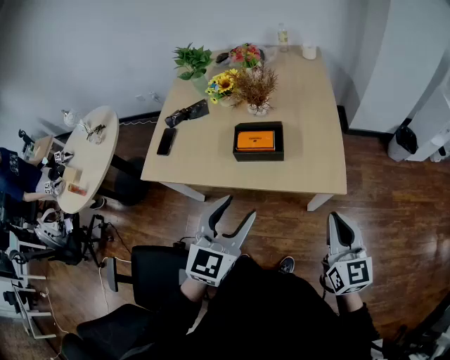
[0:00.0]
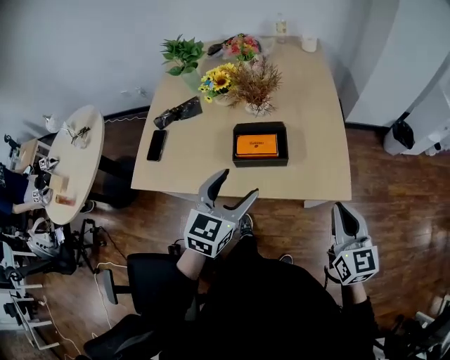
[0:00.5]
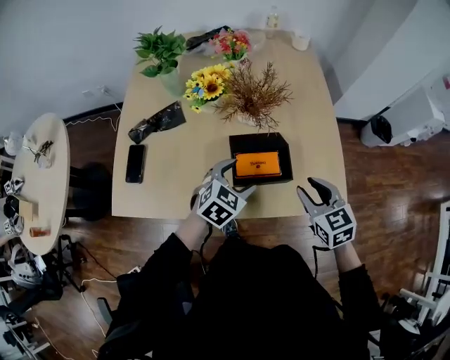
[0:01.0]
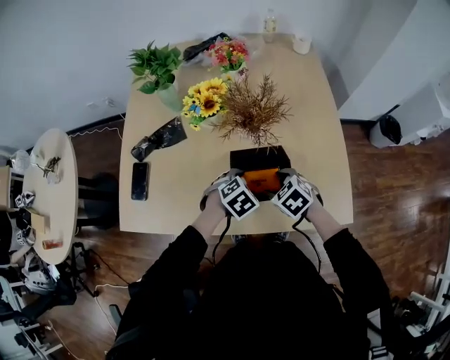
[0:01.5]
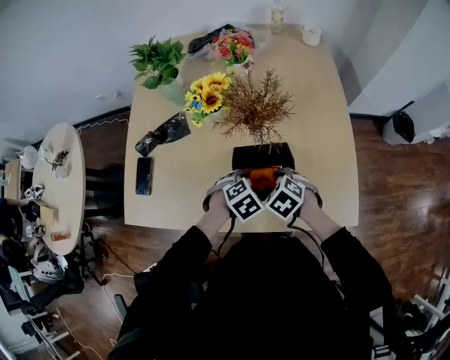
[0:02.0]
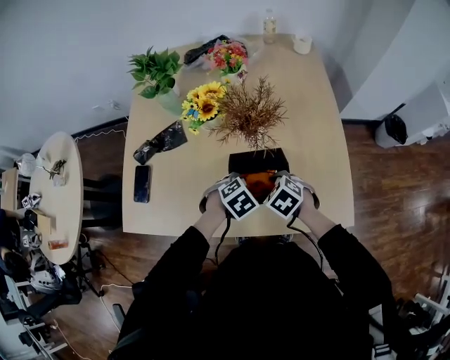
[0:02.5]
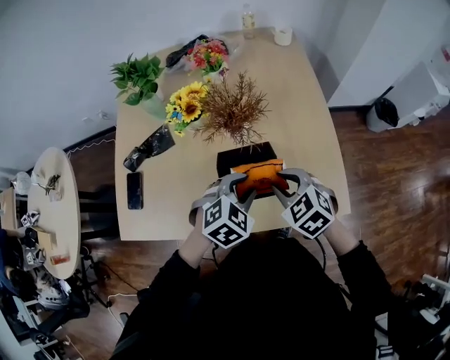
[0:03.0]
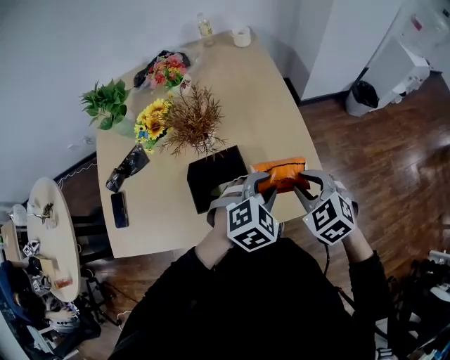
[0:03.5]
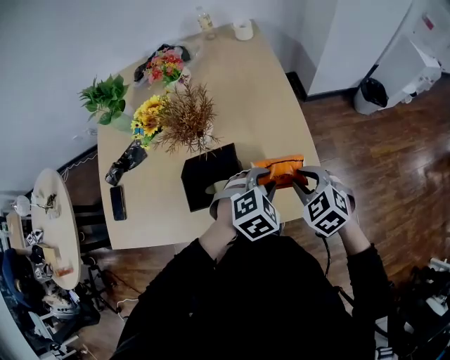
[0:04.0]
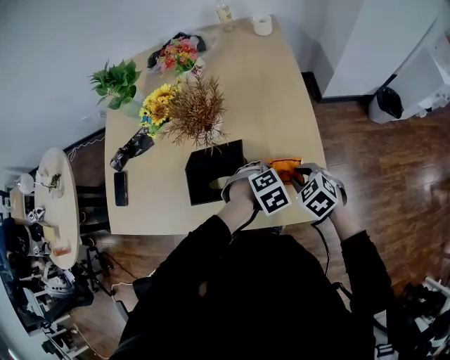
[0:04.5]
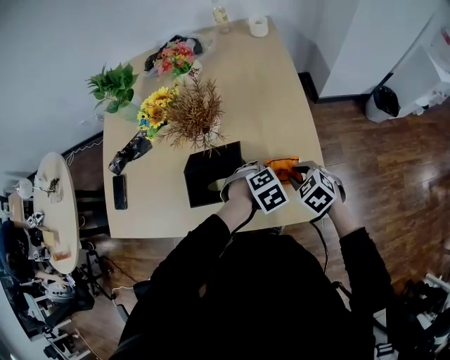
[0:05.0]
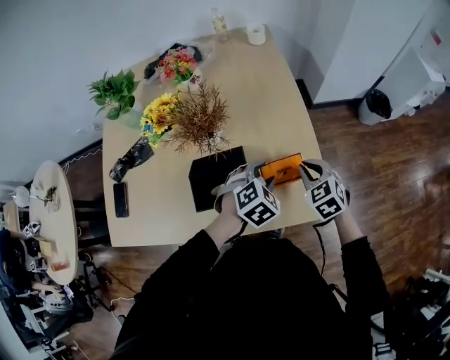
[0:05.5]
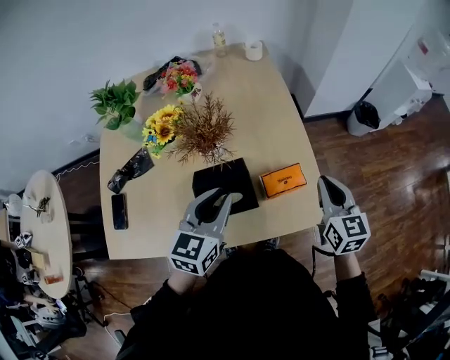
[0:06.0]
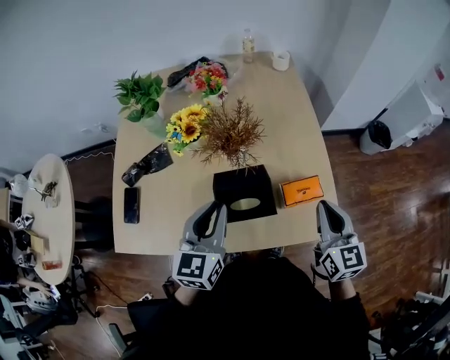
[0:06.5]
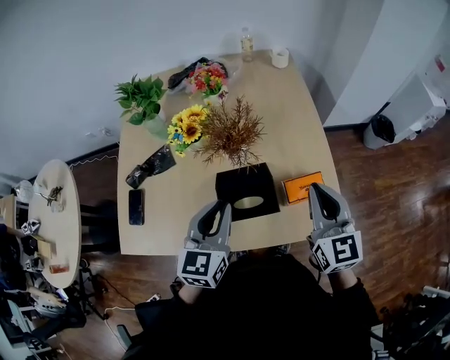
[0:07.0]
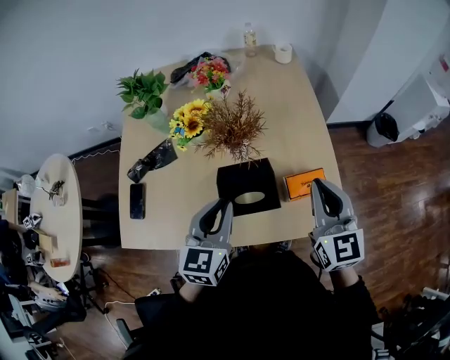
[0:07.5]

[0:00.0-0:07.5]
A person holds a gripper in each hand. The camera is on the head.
0:00.0 to 0:02.0: The right gripper goes approximately 40 cm forward, downward and to the left, angles its fingers downward, by roughly 60 degrees, and opens. Meanwhile the left gripper moves forward and downward, about 40 cm, tilts its fingers roughly 50 degrees downward, and opens, then closes once more.
0:02.0 to 0:04.0: Both grippers move to the right and upward, approximately 25 cm. The left gripper changes its angle by roughly 20 degrees, while the right gripper rotates approximately 20 degrees, and closes.
0:04.0 to 0:05.5: The left gripper travels downward and back again, approximately 10 cm each way, while the right gripper is displaced forward by some 5 cm.
0:05.5 to 0:07.5: The left gripper travels to the left and upward by some 25 cm, tilts its fingers some 30 degrees upward, and closes its fingers. The right gripper moves upward and to the left, approximately 25 cm, and tilts its fingers some 40 degrees upward.

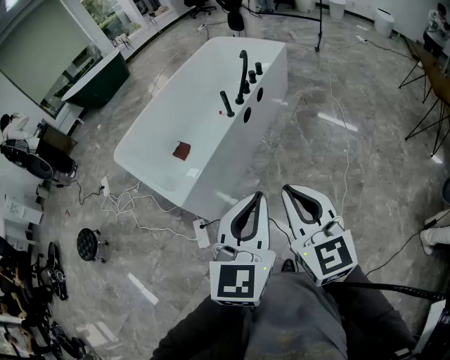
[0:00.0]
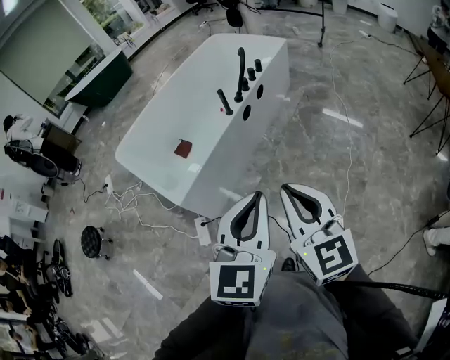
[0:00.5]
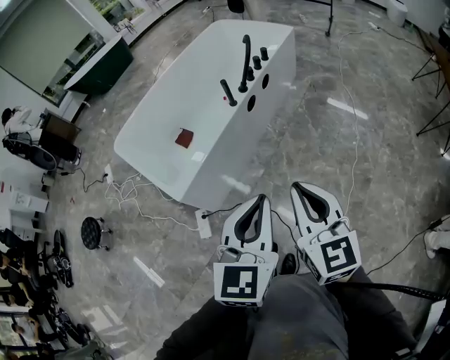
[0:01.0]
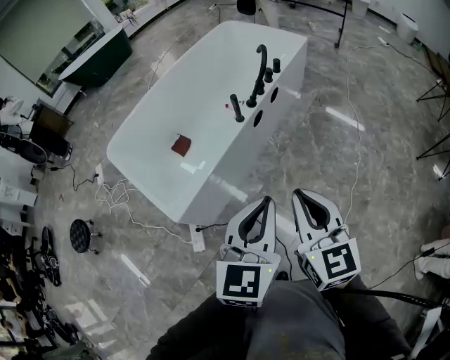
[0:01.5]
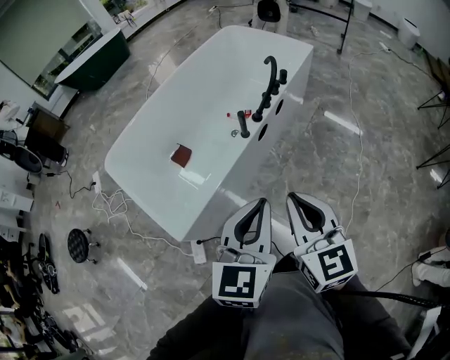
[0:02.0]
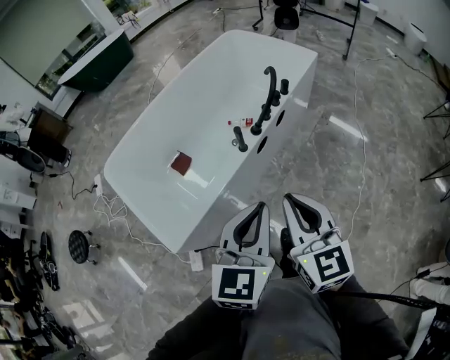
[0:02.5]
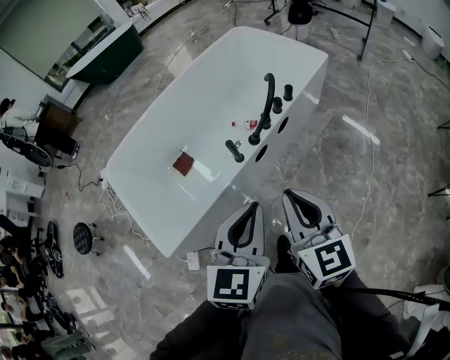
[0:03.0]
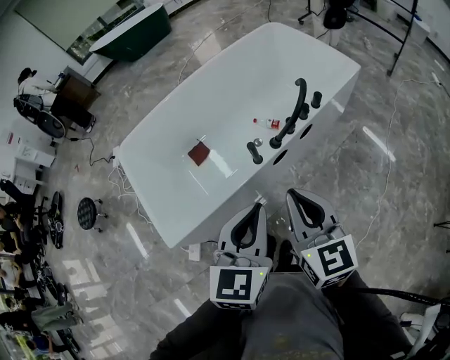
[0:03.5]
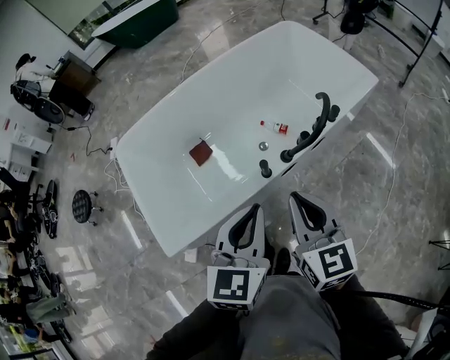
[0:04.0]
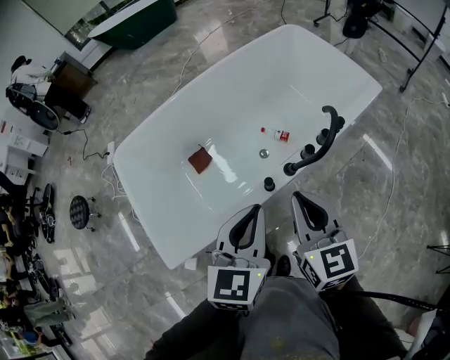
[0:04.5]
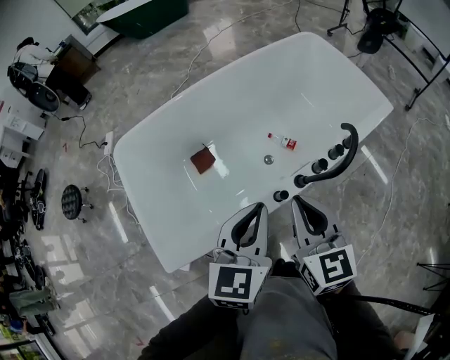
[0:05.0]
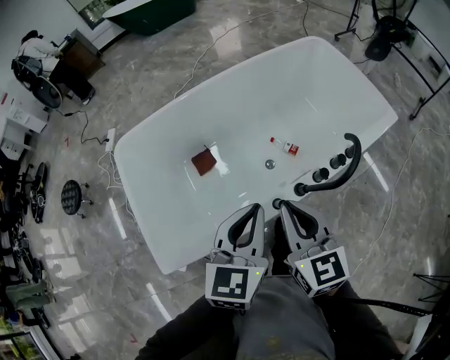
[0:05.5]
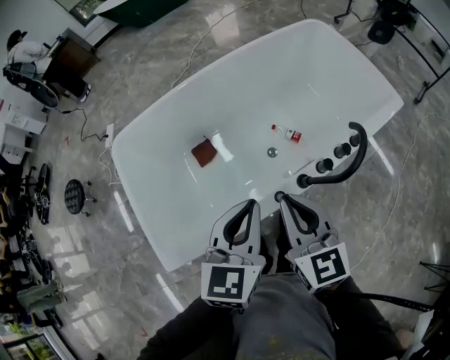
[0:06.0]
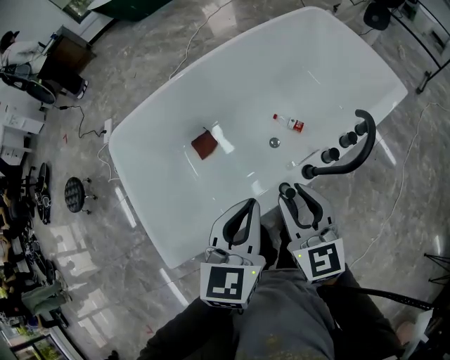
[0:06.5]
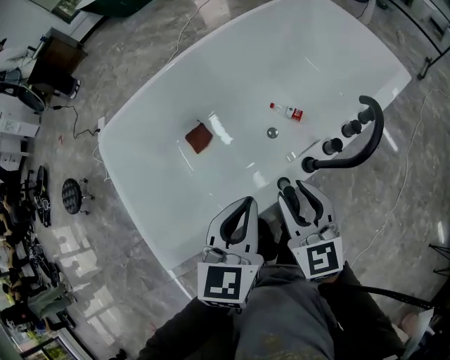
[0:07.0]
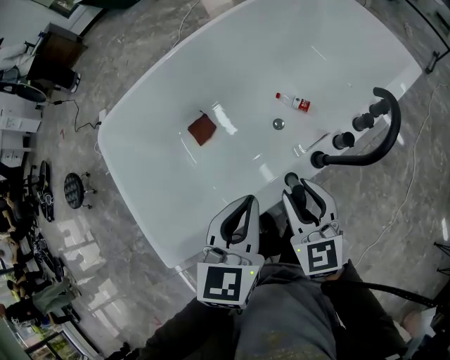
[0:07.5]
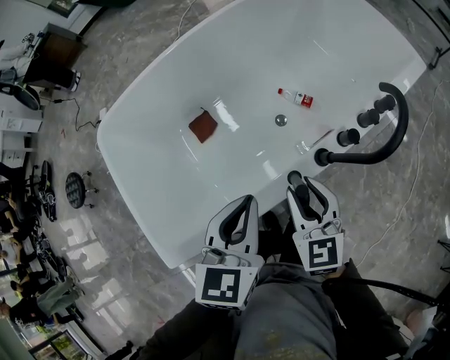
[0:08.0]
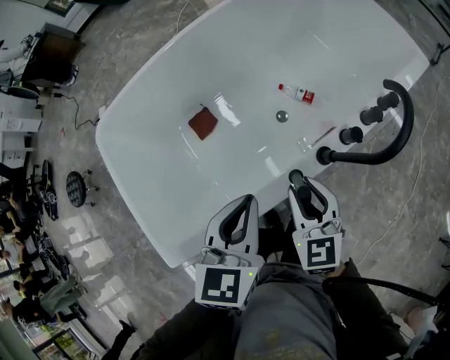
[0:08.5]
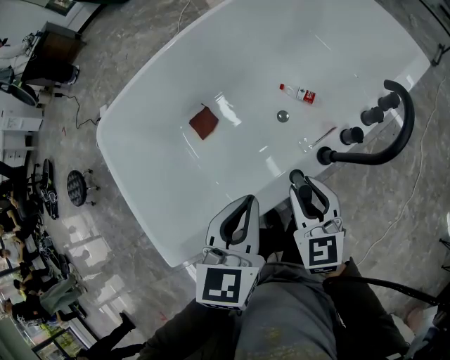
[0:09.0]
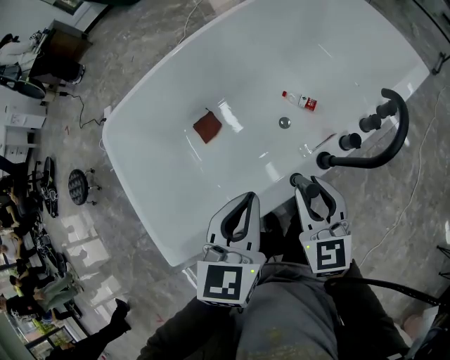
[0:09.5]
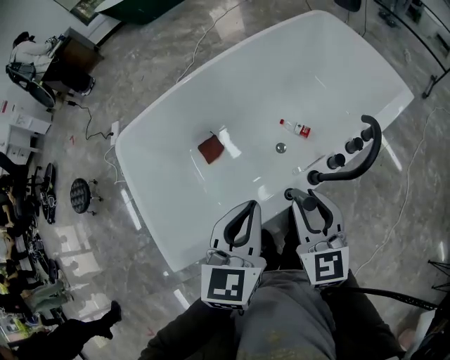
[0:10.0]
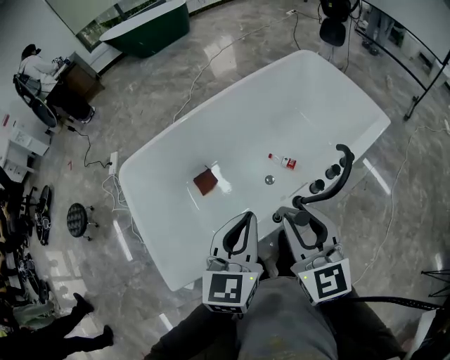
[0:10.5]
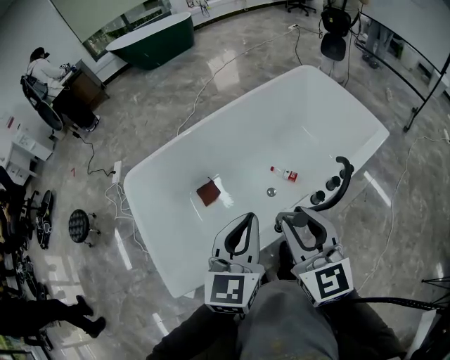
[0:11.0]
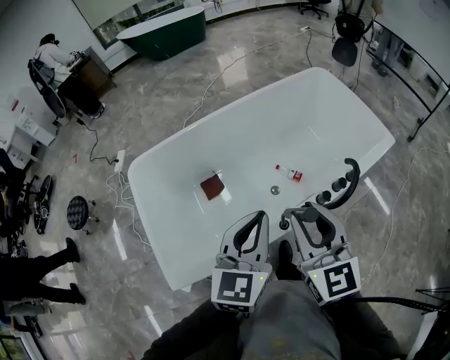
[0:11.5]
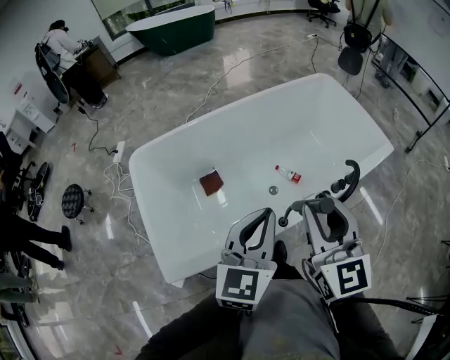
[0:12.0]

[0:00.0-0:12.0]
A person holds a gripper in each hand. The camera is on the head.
0:00.0 to 0:02.0: The two grippers go approximately 25 cm forward.
0:02.0 to 0:04.0: Both grippers move forward, roughly 25 cm. The left gripper changes its angle by roughly 20 degrees.
0:04.0 to 0:06.0: The right gripper travels forward and to the left by some 15 cm, while the left gripper travels forward by roughly 15 cm.
0:06.0 to 0:08.0: Both grippers move downward, some 15 cm. The right gripper opens up.
0:08.0 to 0:10.0: Both grippers travel together upward, approximately 10 cm.
0:10.0 to 0:12.0: The left gripper is displaced upward by some 10 cm. Meanwhile the right gripper is displaced upward by roughly 20 cm.

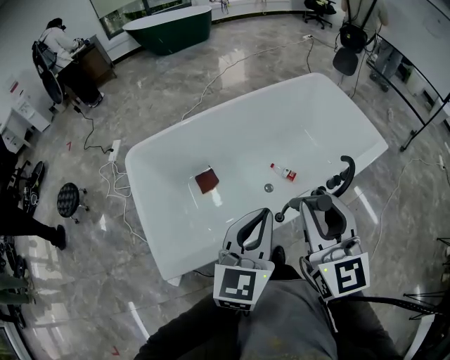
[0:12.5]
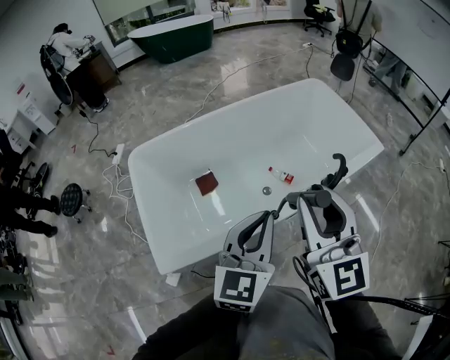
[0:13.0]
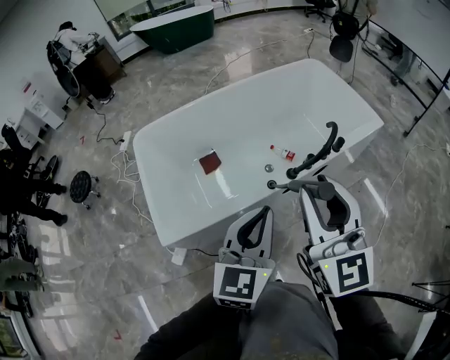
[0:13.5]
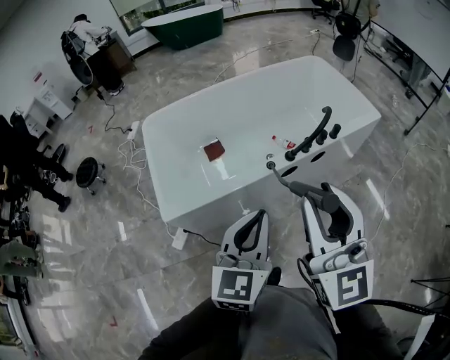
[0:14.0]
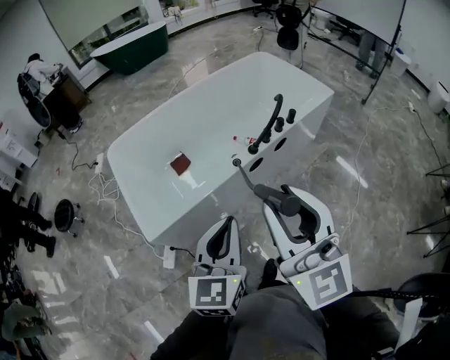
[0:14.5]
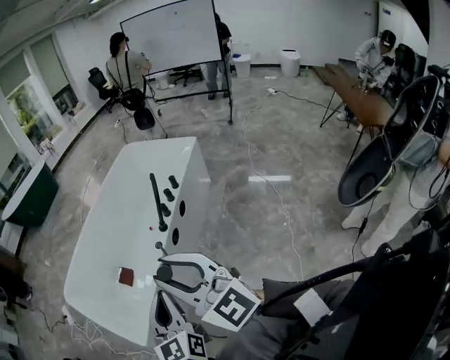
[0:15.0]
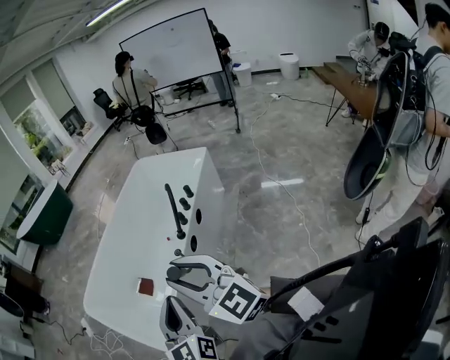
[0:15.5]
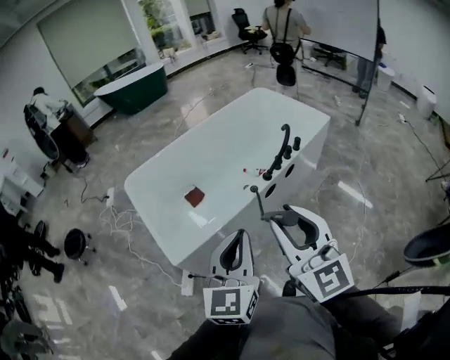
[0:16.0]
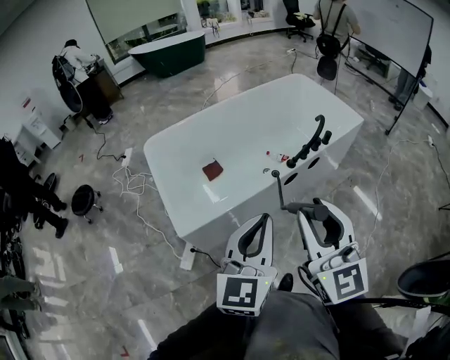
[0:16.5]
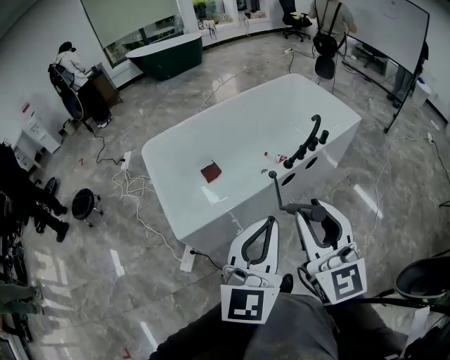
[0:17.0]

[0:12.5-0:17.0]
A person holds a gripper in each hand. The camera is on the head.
0:12.5 to 0:14.5: Both grippers move backward, some 30 cm.
0:14.5 to 0:17.0: The right gripper goes some 5 cm to the left, while the left gripper goes roughly 10 cm upward and backward.

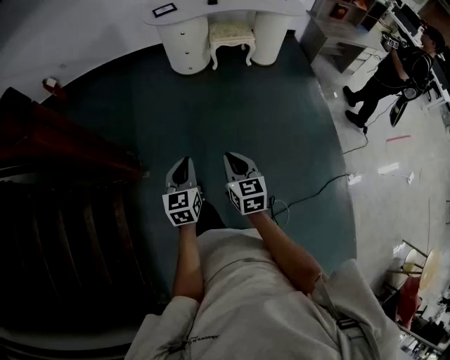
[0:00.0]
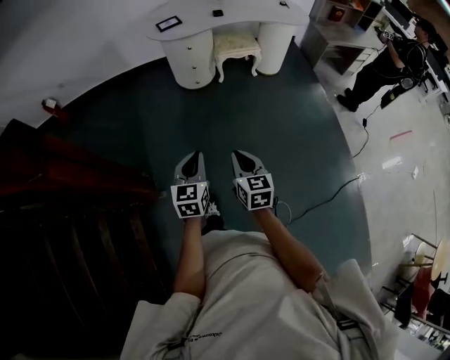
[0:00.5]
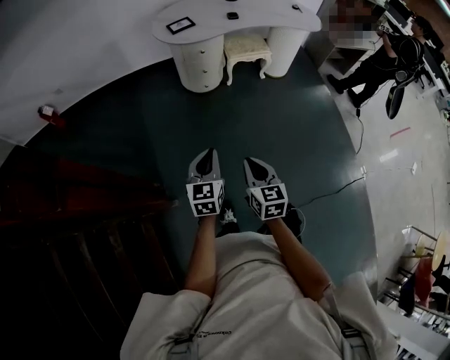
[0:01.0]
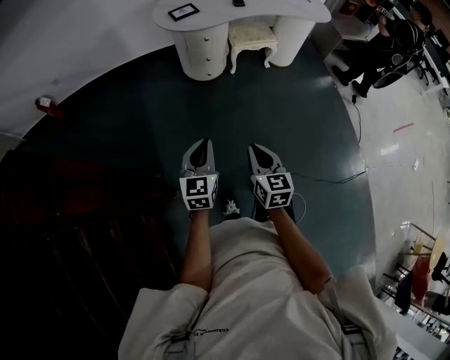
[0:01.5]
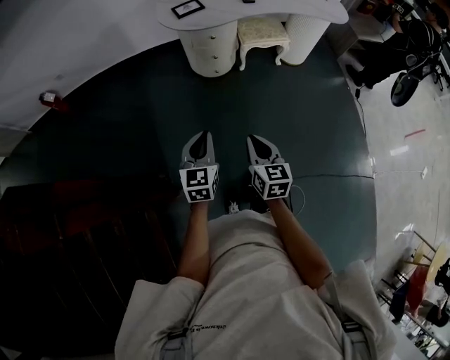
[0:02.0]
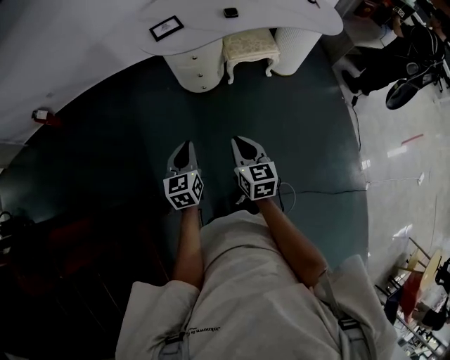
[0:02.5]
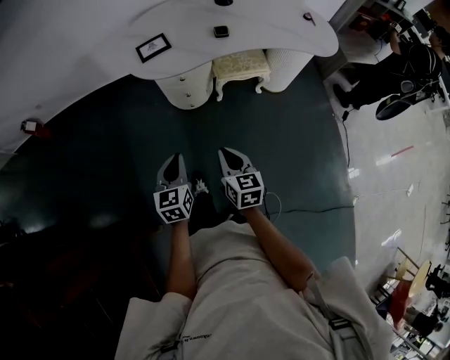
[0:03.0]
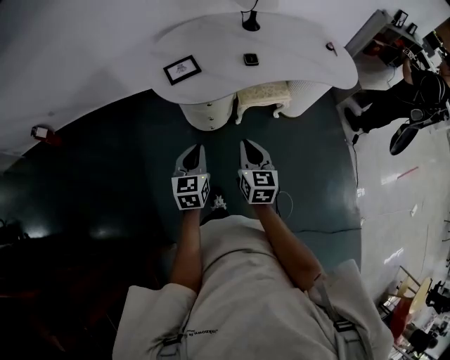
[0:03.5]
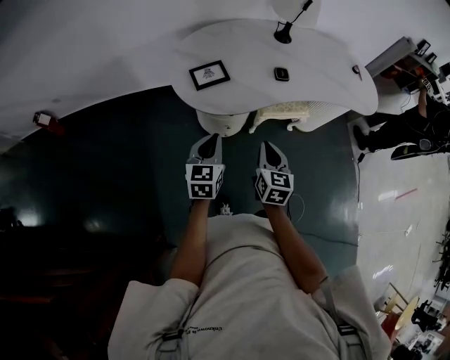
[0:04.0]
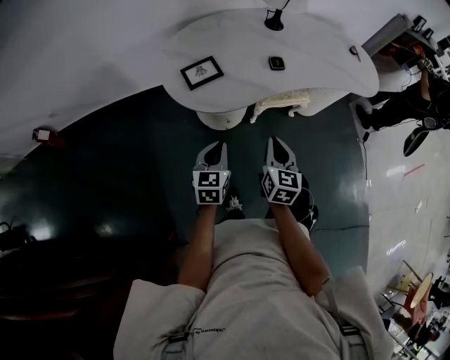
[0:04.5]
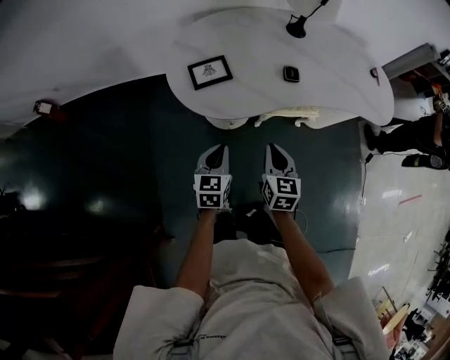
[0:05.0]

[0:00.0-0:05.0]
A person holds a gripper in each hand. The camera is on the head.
0:00.0 to 0:02.5: The two grippers travel together, forward, roughly 50 cm.
0:02.5 to 0:05.0: Both grippers travel together forward, about 35 cm.
